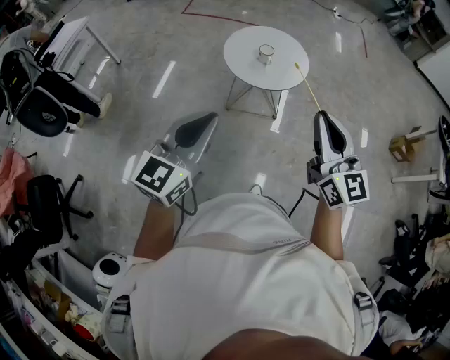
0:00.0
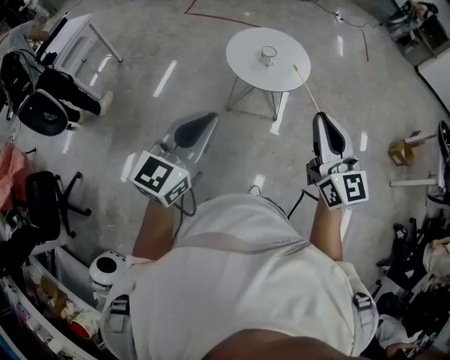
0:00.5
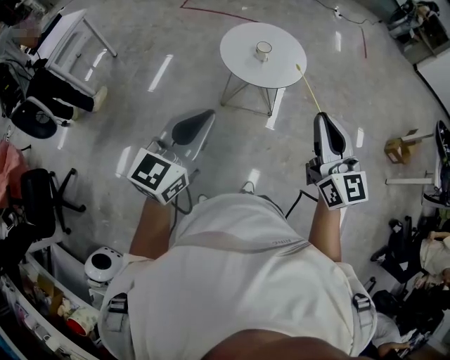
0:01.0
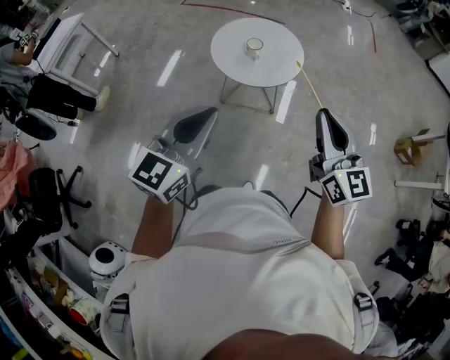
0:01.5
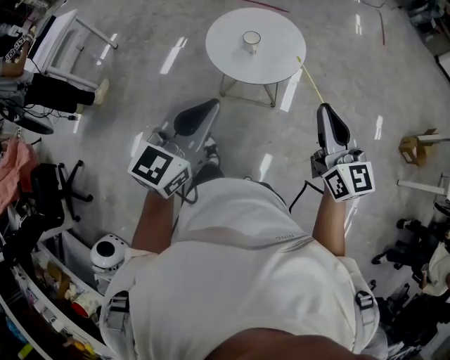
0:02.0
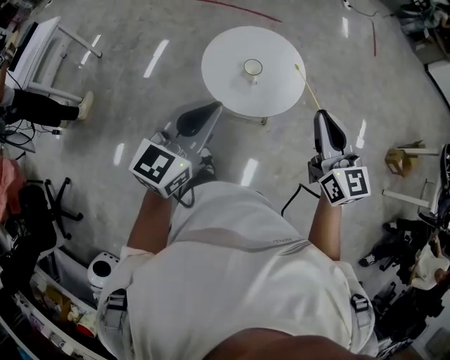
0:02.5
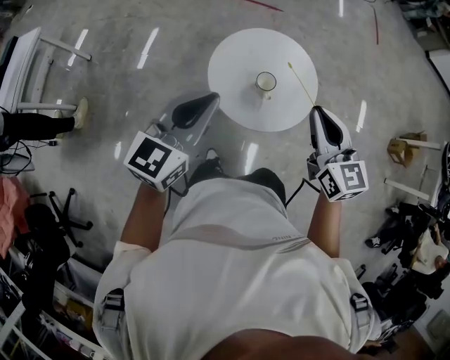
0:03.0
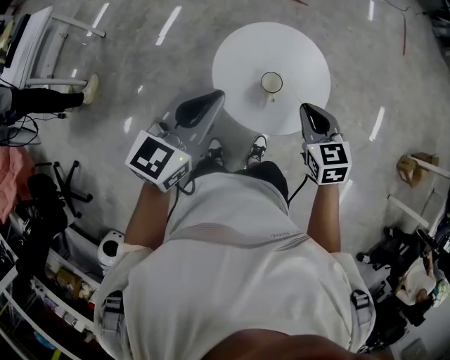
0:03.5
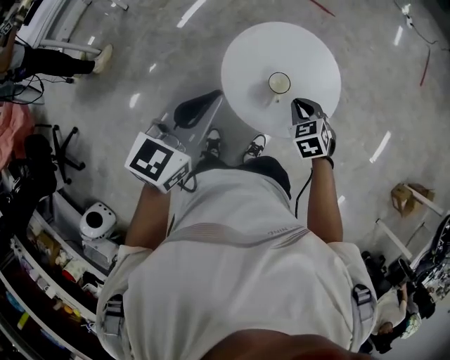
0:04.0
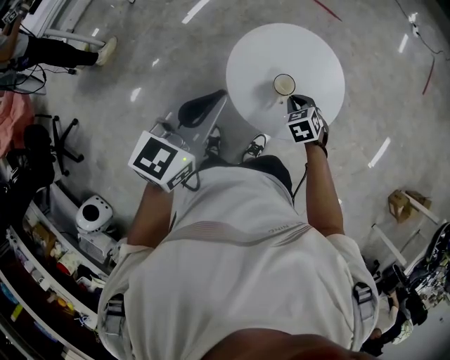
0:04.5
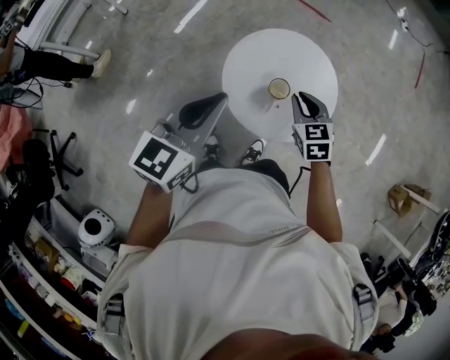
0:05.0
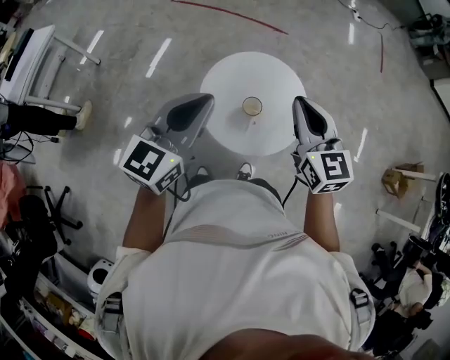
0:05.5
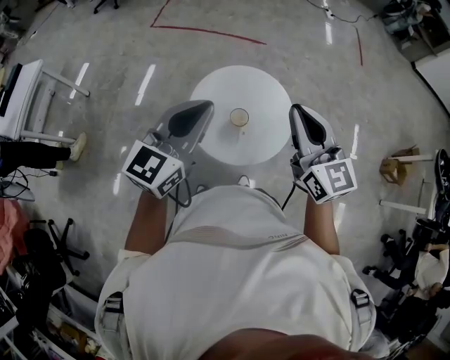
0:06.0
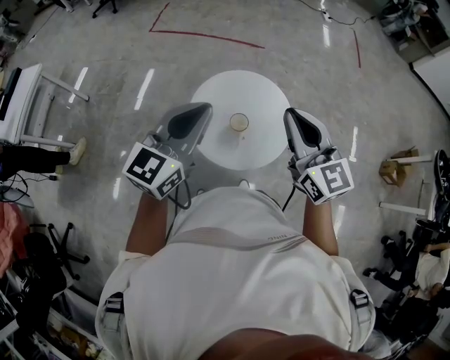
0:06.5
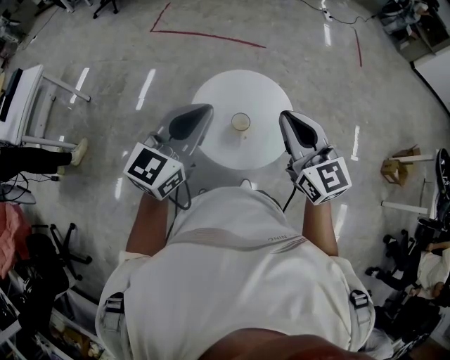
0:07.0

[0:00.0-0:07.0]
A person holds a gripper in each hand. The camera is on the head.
0:00.0 to 0:02.0: The left gripper goes approximately 25 cm forward and to the right. The right gripper shifts some 25 cm forward, to the right and downward.
0:02.0 to 0:03.5: The pair of grippers is taken forward and to the left, about 40 cm. The right gripper points its fingers about 40 degrees further downward.
0:03.5 to 0:05.0: The right gripper moves forward, approximately 5 cm, and reaches approximately 20 cm downward, then returns.
0:05.0 to 0:07.0: The right gripper is displaced upward by approximately 25 cm, and angles its fingers upward, by some 30 degrees. Meanwhile the left gripper shifts about 10 cm upward, and rotates some 20 degrees.

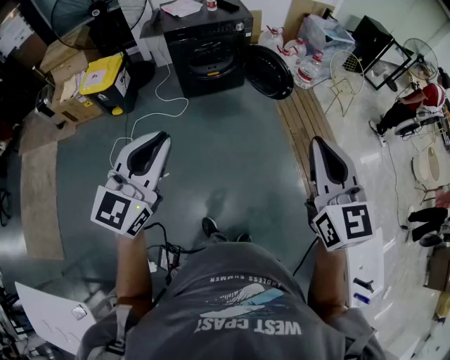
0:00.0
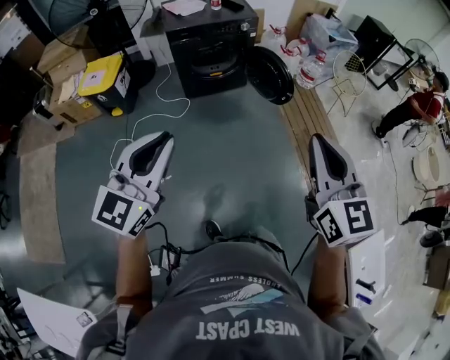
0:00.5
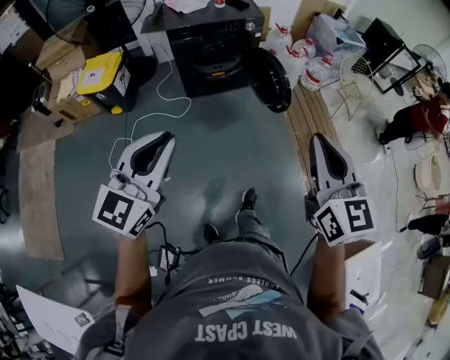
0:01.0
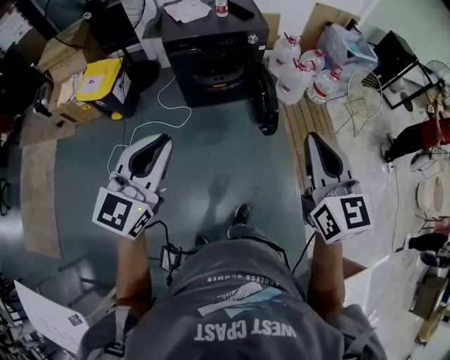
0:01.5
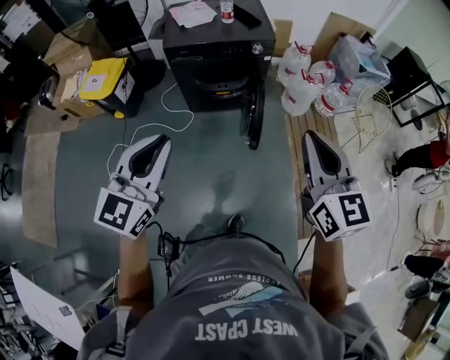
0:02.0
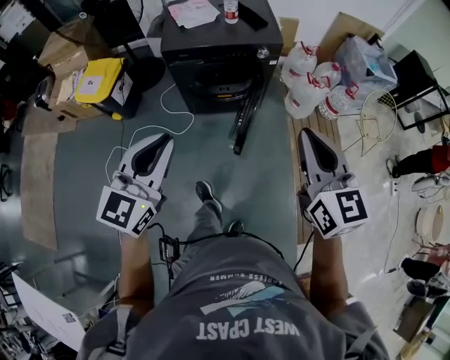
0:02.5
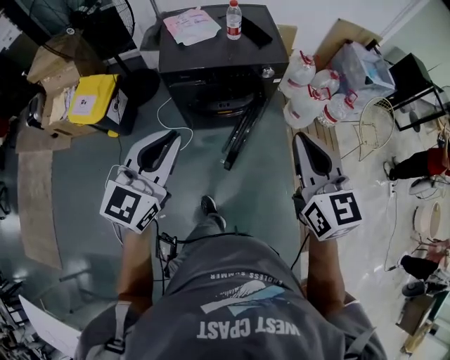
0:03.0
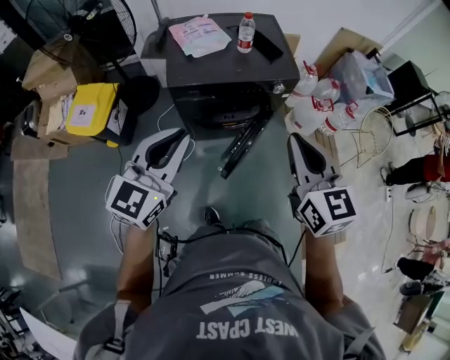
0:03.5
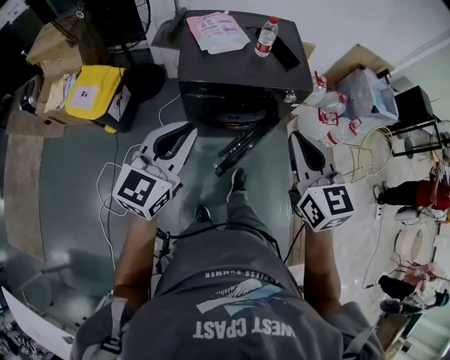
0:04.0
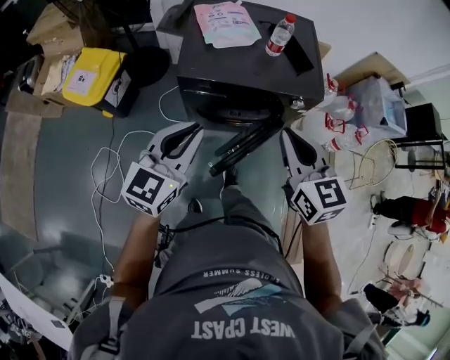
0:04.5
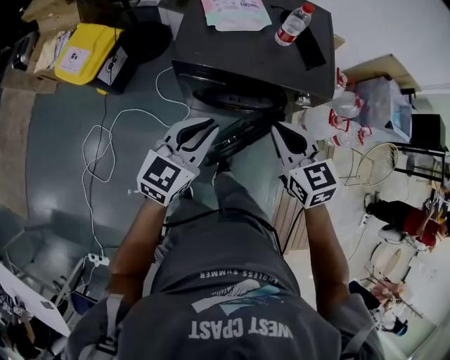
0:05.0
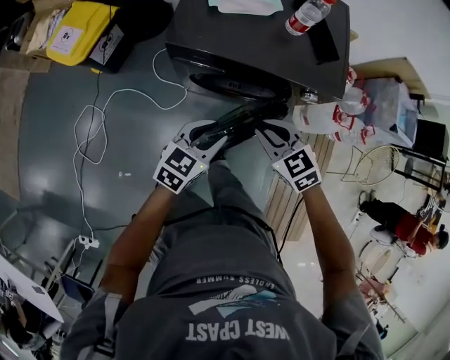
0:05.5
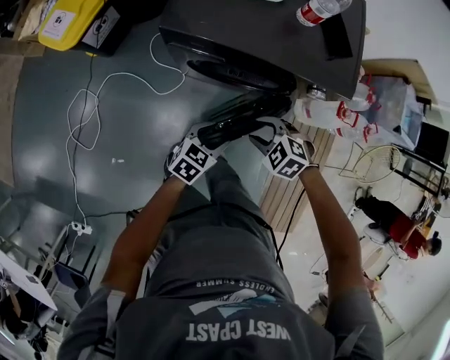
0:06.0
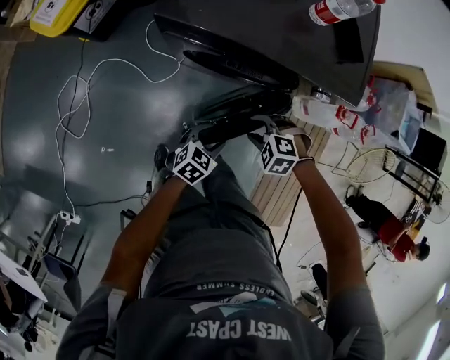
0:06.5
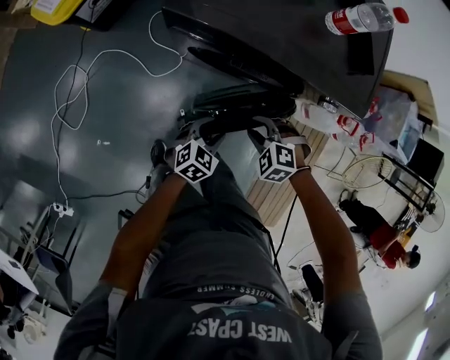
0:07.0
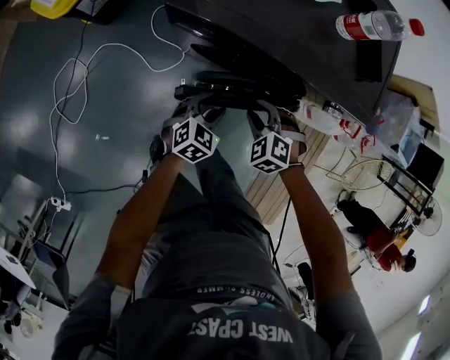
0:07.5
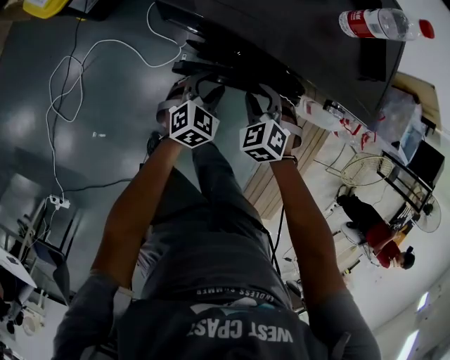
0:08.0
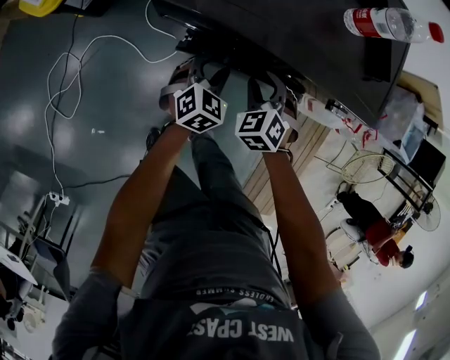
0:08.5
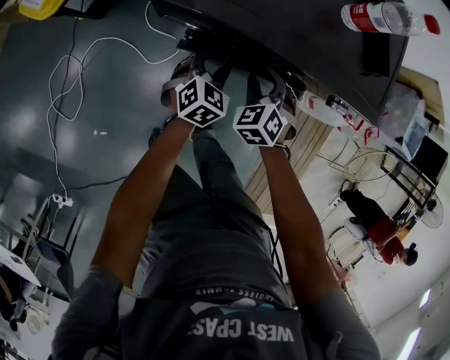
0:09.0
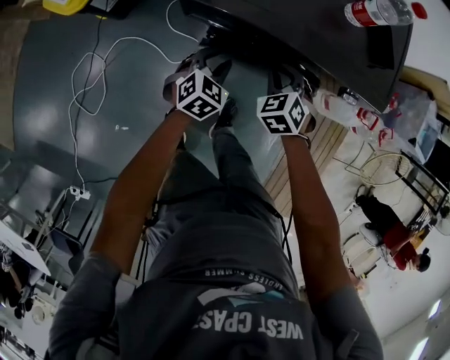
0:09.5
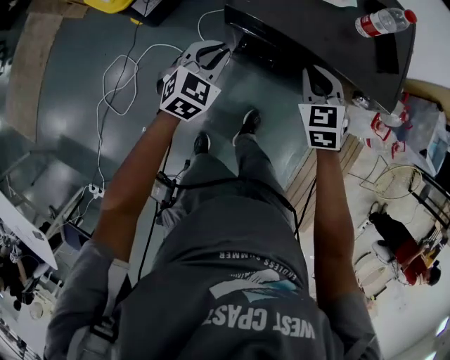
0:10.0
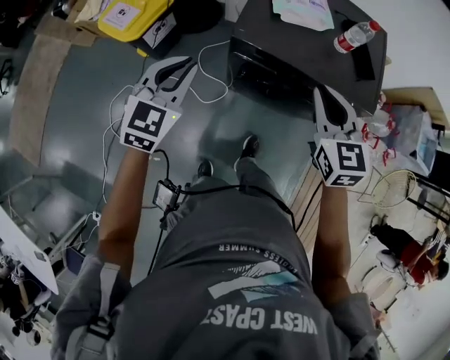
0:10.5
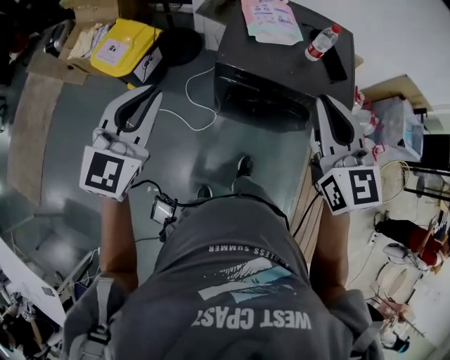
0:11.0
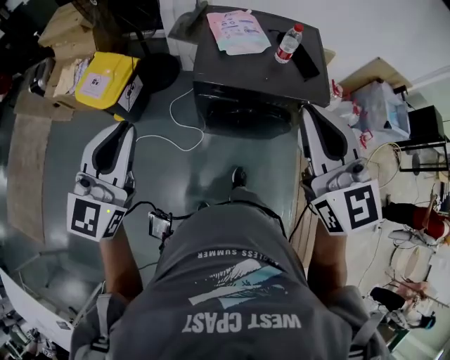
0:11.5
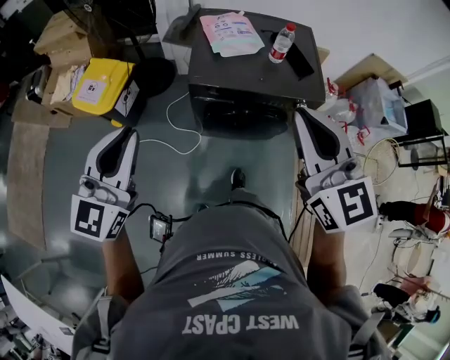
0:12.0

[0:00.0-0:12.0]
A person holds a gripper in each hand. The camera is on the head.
0:00.0 to 0:02.0: Both grippers move forward, some 30 cm.
0:02.0 to 0:04.0: The grippers both shift forward and to the left by roughly 35 cm.
0:04.0 to 0:06.0: Both grippers move downward, approximately 40 cm. The right gripper angles its fingers downward, by about 50 degrees, and opens up, while the left gripper points its fingers approximately 30 degrees further downward, and opens its fingers.
0:06.0 to 0:08.0: The right gripper shifts by some 15 cm, and swivels about 20 degrees, while the left gripper shifts by roughly 15 cm, and changes its angle by about 30 degrees.
0:08.0 to 0:10.0: The right gripper is displaced upward by some 15 cm, swivels roughly 30 degrees, and closes its fingers. Meanwhile the left gripper travels upward and to the left by some 20 cm, and closes up.
0:10.0 to 0:12.0: Both grippers move upward and backward, approximately 40 cm. The right gripper angles its fingers upward, by approximately 30 degrees; the left gripper angles its fingers upward, by some 40 degrees.

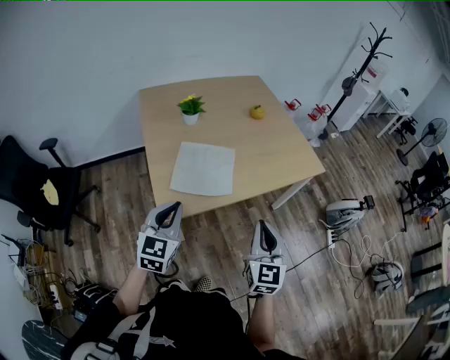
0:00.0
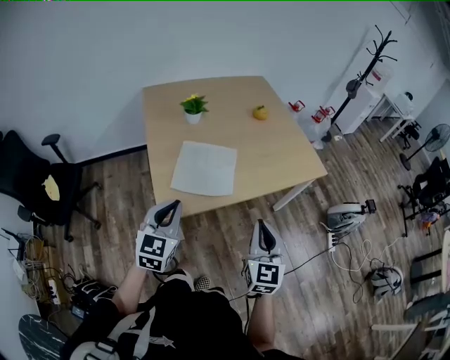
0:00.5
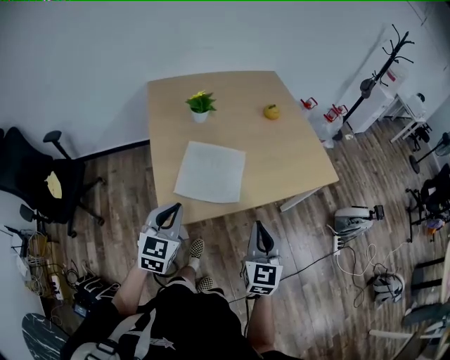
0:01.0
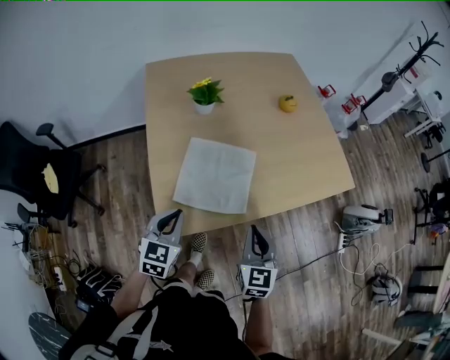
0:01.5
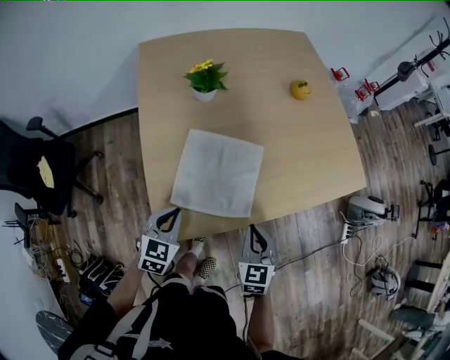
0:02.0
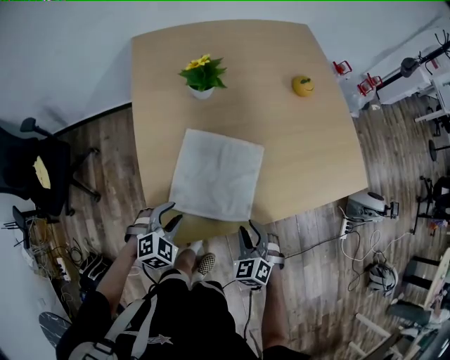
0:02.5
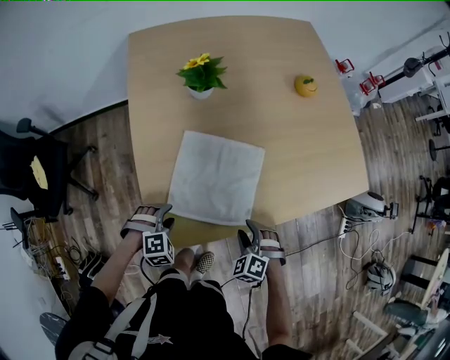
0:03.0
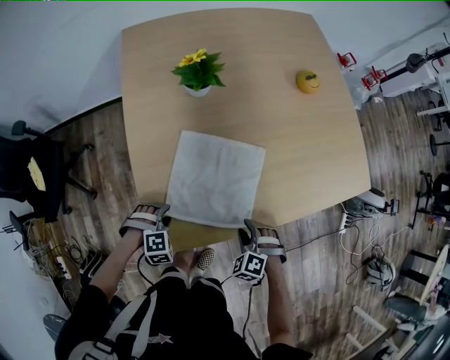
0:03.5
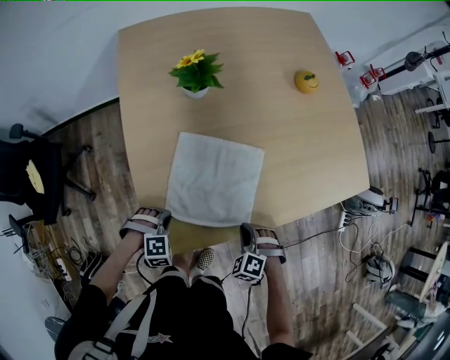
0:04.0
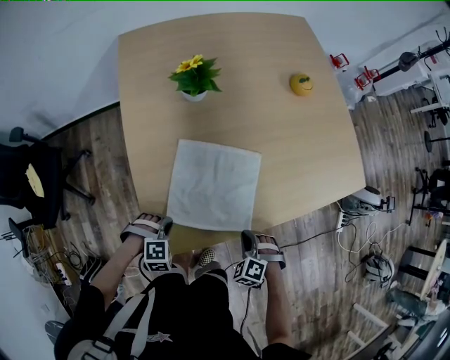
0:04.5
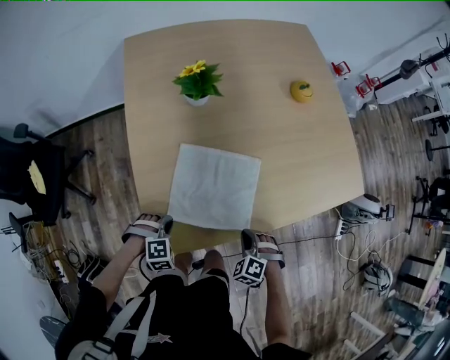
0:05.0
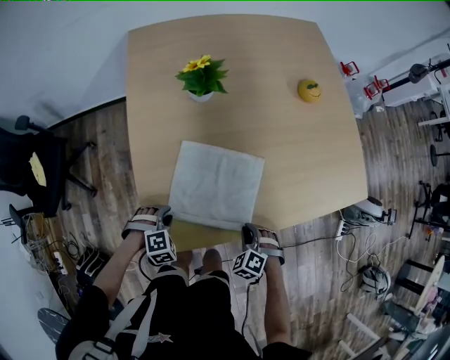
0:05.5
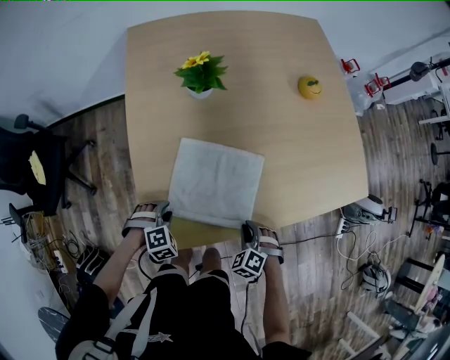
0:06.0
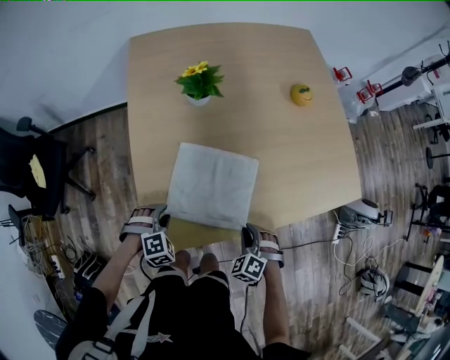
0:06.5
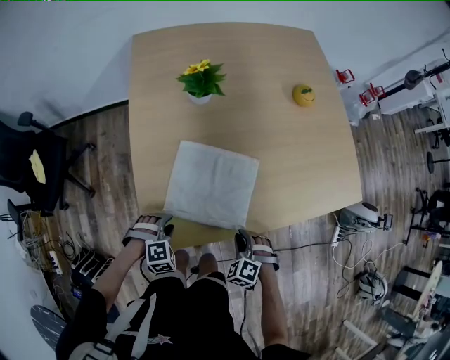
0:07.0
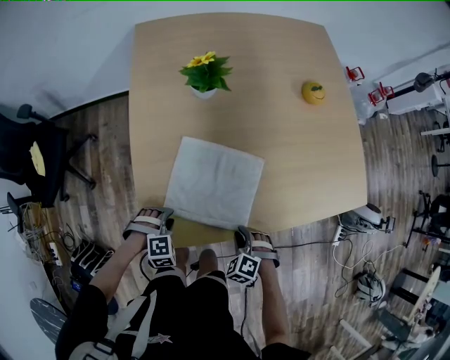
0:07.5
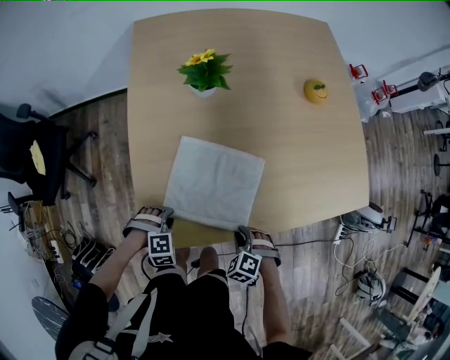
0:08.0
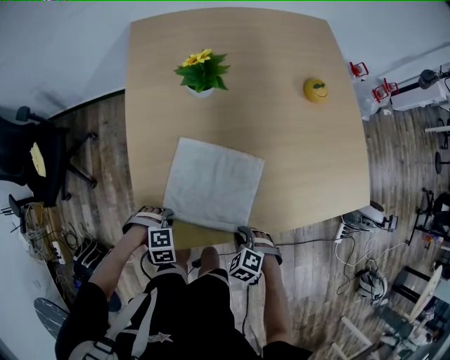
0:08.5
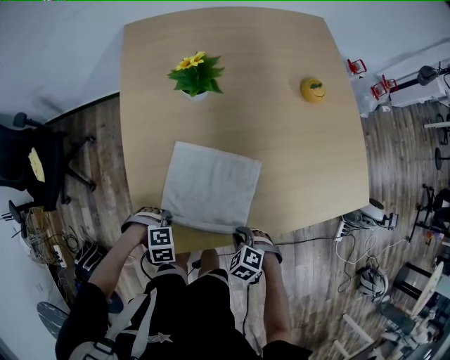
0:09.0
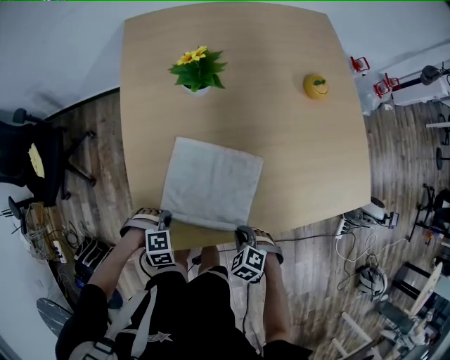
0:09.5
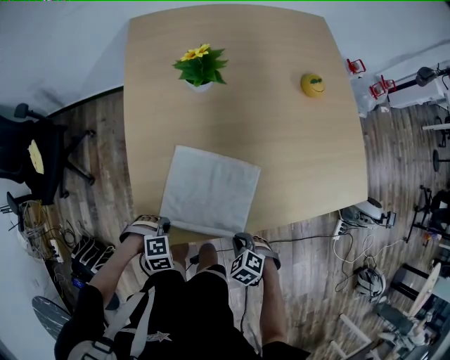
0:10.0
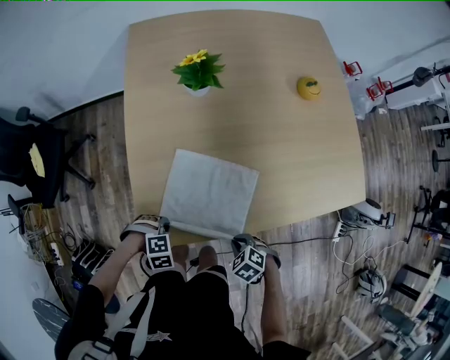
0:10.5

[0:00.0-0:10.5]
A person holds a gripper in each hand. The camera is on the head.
0:00.0 to 0:02.0: The right gripper shifts by roughly 30 cm, and changes its angle by some 30 degrees.
0:02.0 to 0:04.0: The right gripper travels downward by roughly 15 cm, rotates around the line of its fingers by about 50 degrees, counterclockwise from behind, and opens and closes again.
0:06.5 to 0:08.5: The right gripper changes place by some 5 cm, and rotates some 20 degrees.
0:08.5 to 0:10.5: The right gripper ends up approximately 5 cm from where it was.
